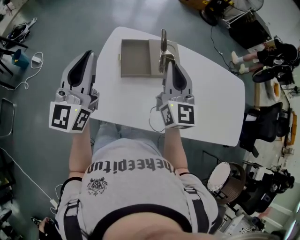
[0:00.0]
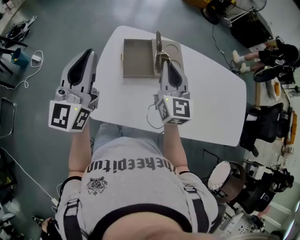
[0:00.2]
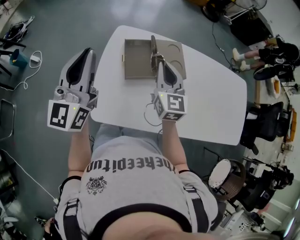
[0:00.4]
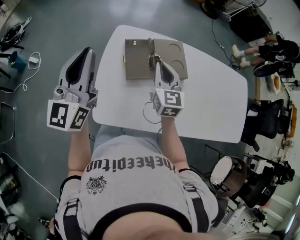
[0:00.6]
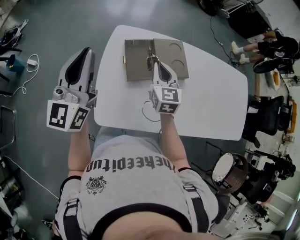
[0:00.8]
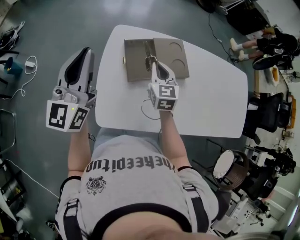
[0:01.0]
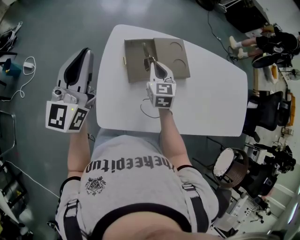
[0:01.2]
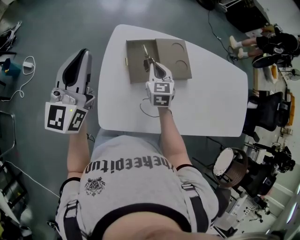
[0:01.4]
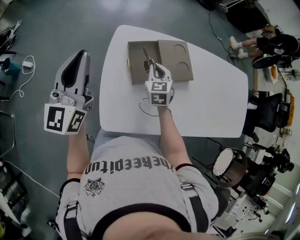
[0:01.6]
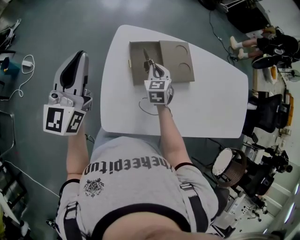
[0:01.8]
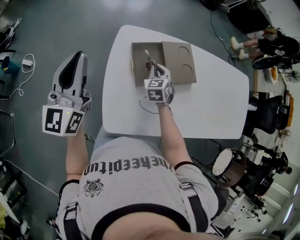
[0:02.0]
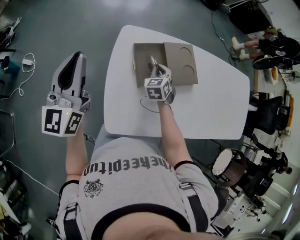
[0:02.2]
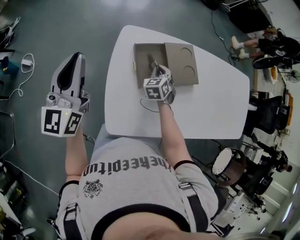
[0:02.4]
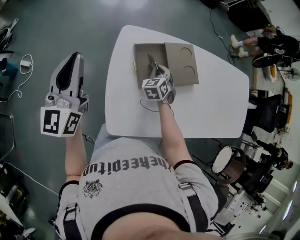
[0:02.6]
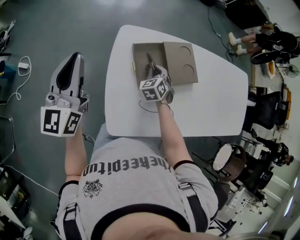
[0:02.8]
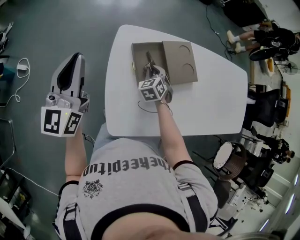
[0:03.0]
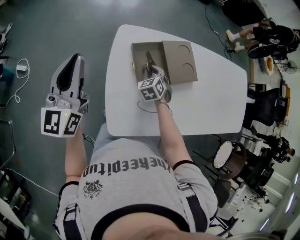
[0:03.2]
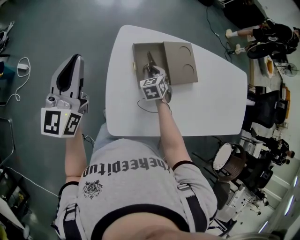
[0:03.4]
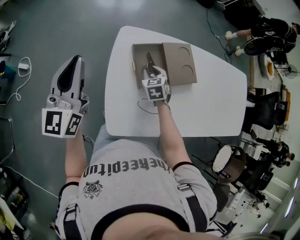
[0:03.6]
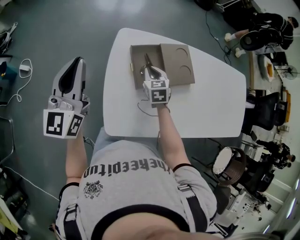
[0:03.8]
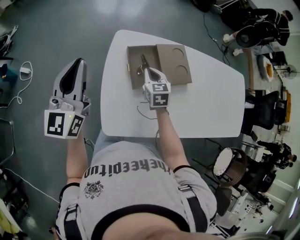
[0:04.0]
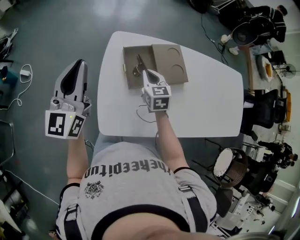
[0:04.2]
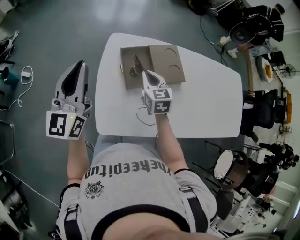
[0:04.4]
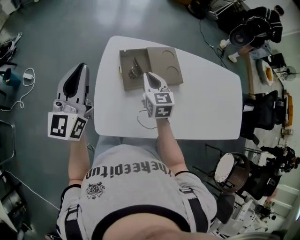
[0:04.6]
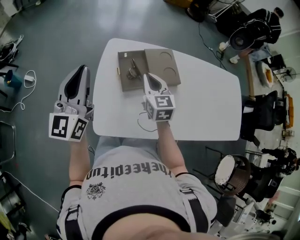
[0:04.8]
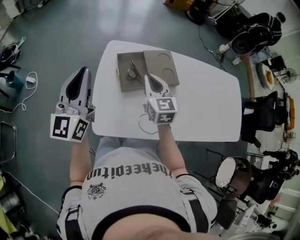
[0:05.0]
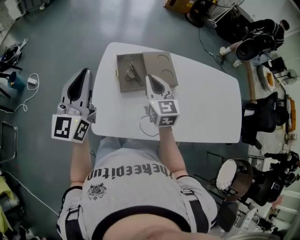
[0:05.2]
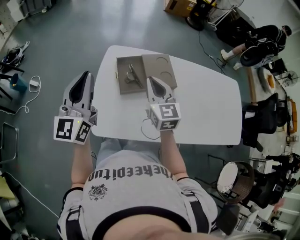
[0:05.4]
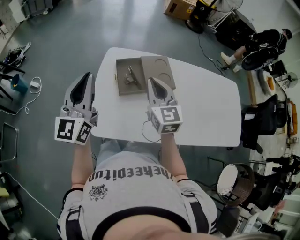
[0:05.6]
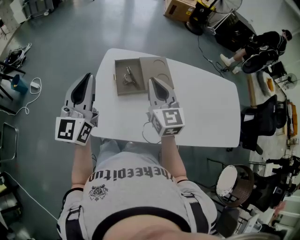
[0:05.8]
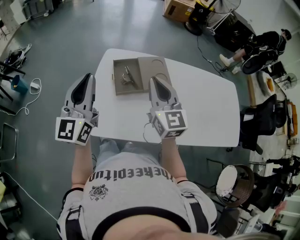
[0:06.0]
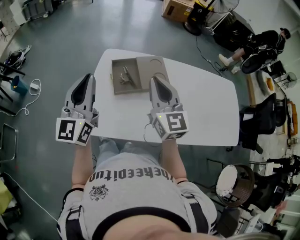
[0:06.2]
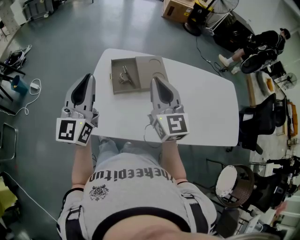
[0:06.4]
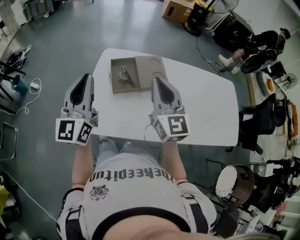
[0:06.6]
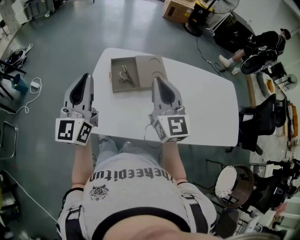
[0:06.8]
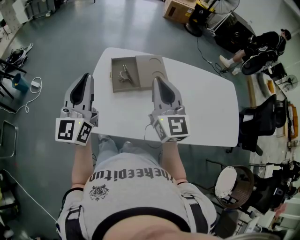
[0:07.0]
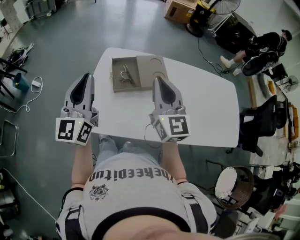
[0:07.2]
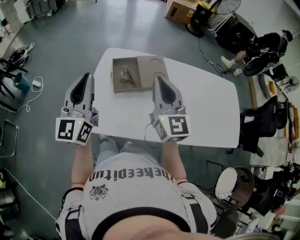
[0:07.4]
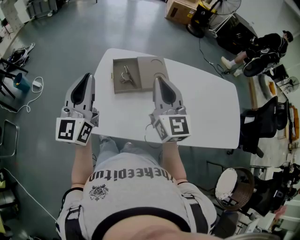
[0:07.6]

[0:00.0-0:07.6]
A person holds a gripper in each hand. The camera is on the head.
0:00.0 to 0:01.6: The right gripper moves downward and forward, about 25 cm, and points its fingers approximately 40 degrees further downward; the left gripper shifts roughly 15 cm forward and to the left.
0:01.6 to 0:03.0: The right gripper shifts roughly 10 cm downward, and swivels about 30 degrees; the left gripper heads to the left, covering about 5 cm.
0:03.0 to 0:04.6: The right gripper is displaced upward and backward by roughly 20 cm, and changes its angle by approximately 40 degrees; the left gripper heads to the right and backward, covering about 15 cm.
0:04.6 to 0:06.0: The right gripper moves upward, backward and to the right, some 20 cm, and swivels approximately 20 degrees, while the left gripper is displaced backward and to the right by some 10 cm.
0:06.0 to 0:07.6: The right gripper changes place by about 5 cm.

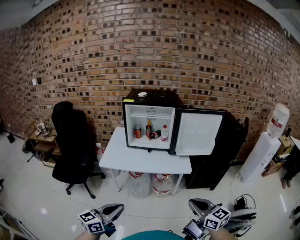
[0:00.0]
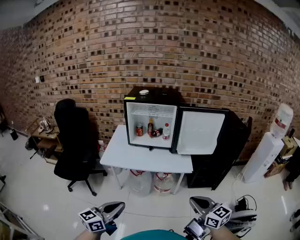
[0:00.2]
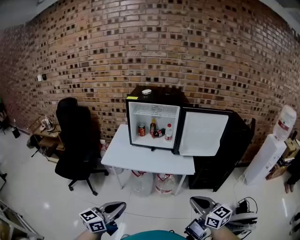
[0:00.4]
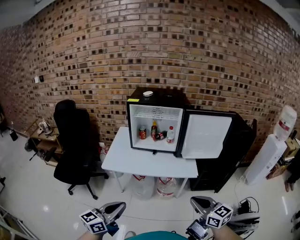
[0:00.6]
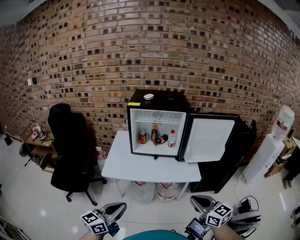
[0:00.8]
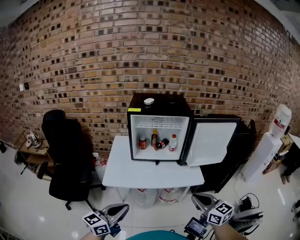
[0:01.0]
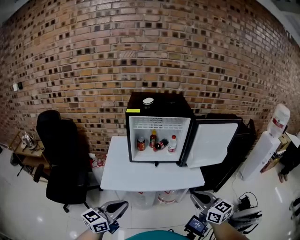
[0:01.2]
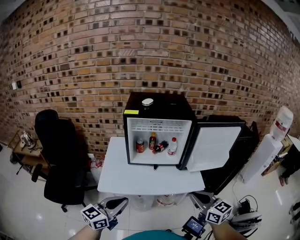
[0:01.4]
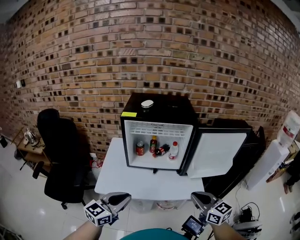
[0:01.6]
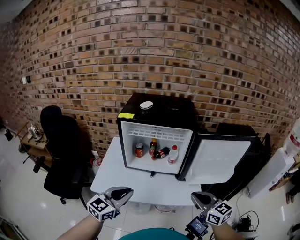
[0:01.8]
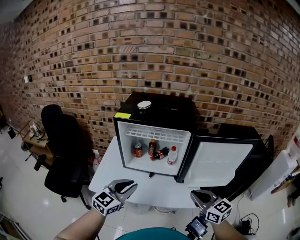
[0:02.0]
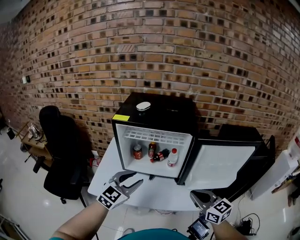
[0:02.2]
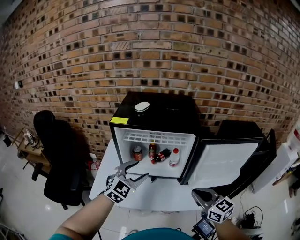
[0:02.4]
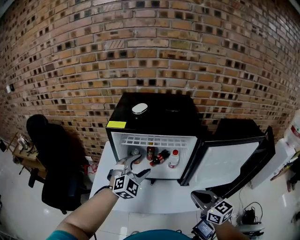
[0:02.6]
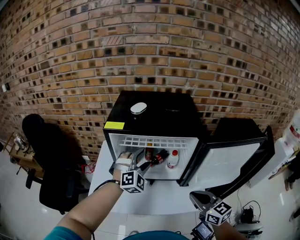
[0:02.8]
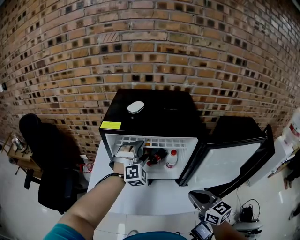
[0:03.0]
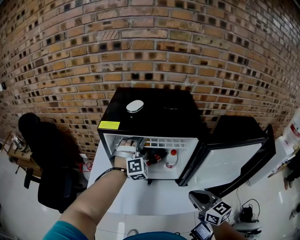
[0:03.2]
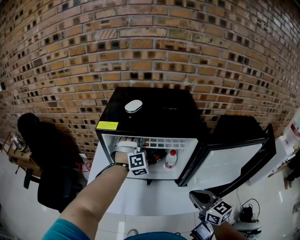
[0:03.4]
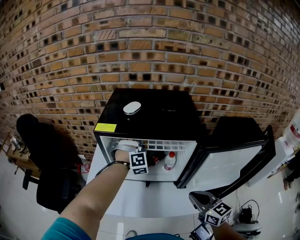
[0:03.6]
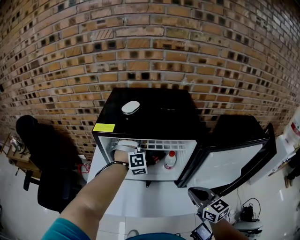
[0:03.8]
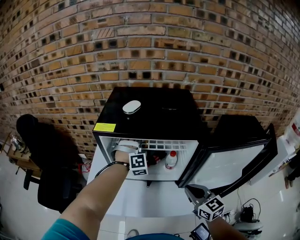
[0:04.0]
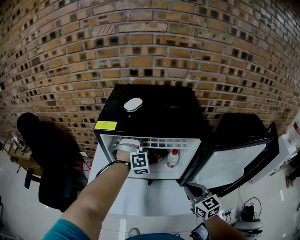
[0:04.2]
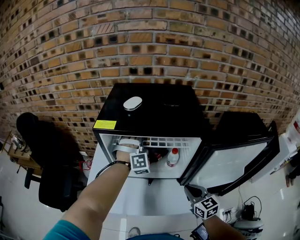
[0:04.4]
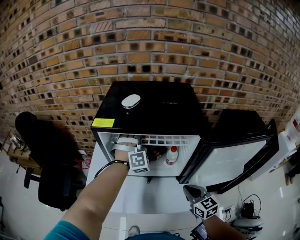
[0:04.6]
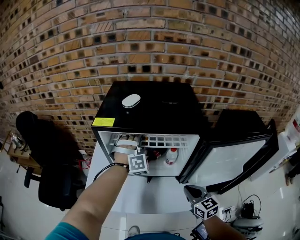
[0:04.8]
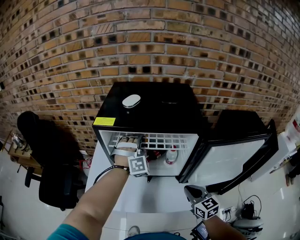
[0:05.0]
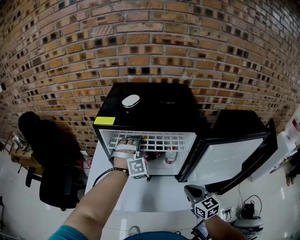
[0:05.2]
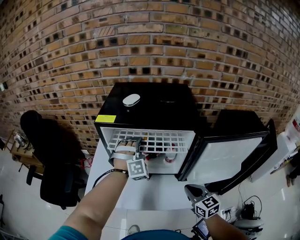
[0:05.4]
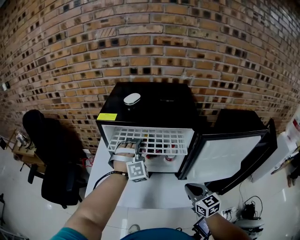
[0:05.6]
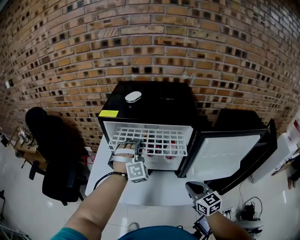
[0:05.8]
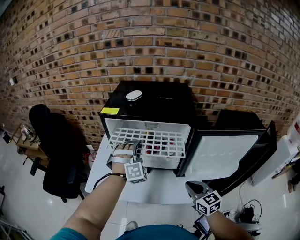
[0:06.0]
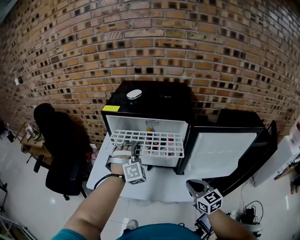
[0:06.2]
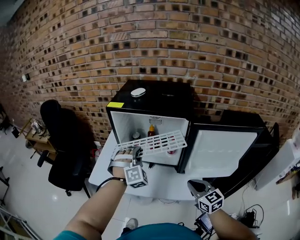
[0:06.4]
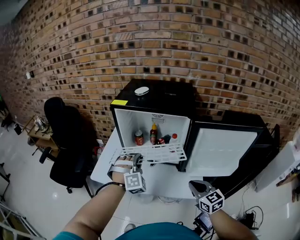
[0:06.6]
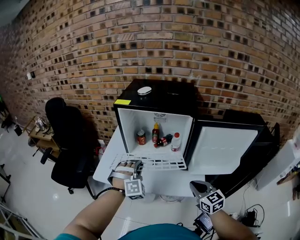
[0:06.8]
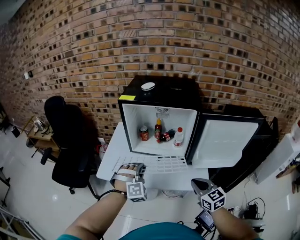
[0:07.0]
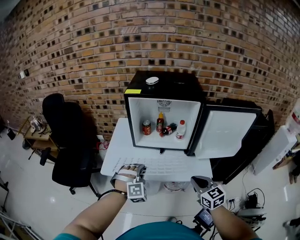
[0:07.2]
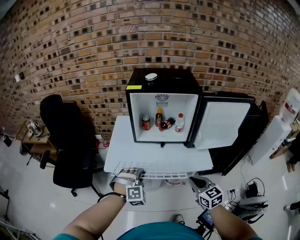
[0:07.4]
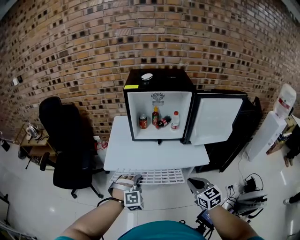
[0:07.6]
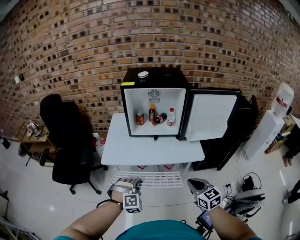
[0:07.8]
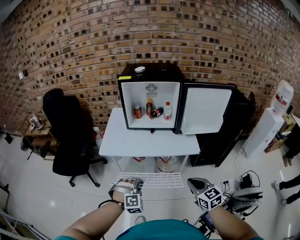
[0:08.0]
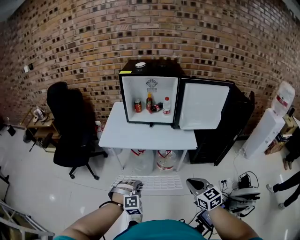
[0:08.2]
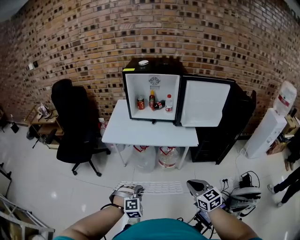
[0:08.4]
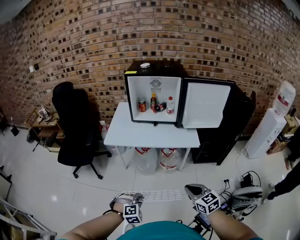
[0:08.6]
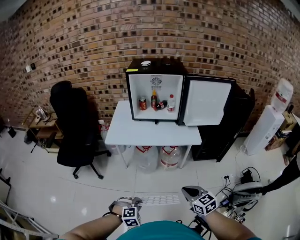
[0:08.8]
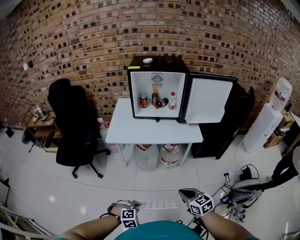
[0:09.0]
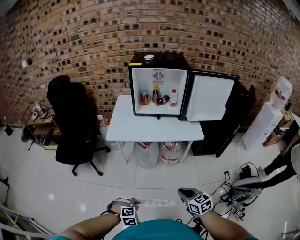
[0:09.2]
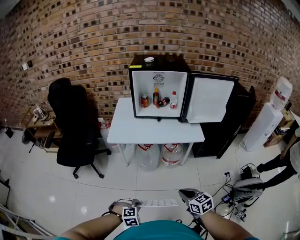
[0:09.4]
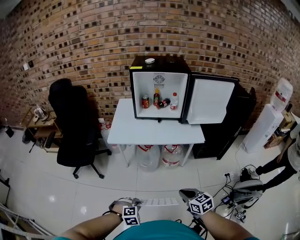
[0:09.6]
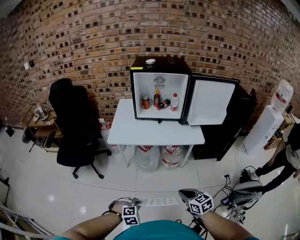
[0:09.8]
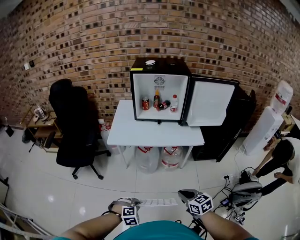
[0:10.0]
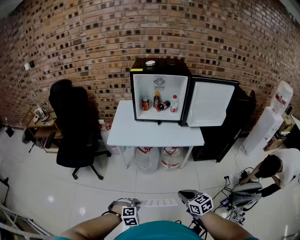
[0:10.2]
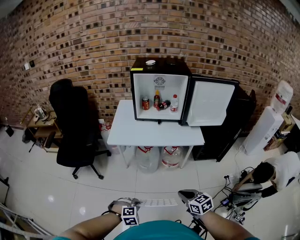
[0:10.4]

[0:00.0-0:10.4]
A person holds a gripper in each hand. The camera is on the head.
0:00.0 to 0:01.4: The right gripper goes roughly 25 cm forward and to the left; the left gripper heads forward, covering about 25 cm.
0:01.4 to 0:03.0: The left gripper heads forward and to the right, covering roughly 40 cm, rotates around the line of its fingers by some 80 degrees, clockwise from behind, and opens. The right gripper is displaced forward by about 20 cm.
0:03.0 to 0:04.4: The right gripper moves downward and forward, approximately 10 cm; the left gripper is displaced forward by approximately 10 cm, and closes up.
0:04.4 to 0:06.0: The right gripper moves backward, approximately 5 cm. The left gripper moves backward, about 10 cm.
0:06.0 to 0:07.4: The right gripper shifts some 20 cm backward and to the left; the left gripper goes approximately 30 cm backward, to the left and downward, and changes its angle by some 20 degrees.
0:07.4 to 0:09.0: The right gripper goes some 25 cm backward; the left gripper goes some 40 cm backward and downward, and tilts its fingers approximately 30 degrees downward.
0:09.0 to 0:10.4: The grippers stay close to where they were, moving slightly.

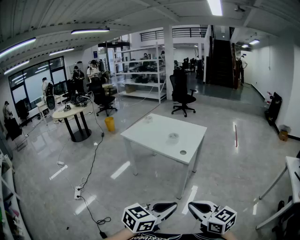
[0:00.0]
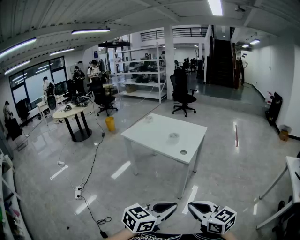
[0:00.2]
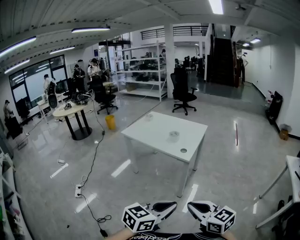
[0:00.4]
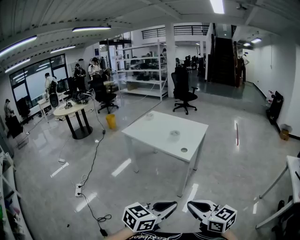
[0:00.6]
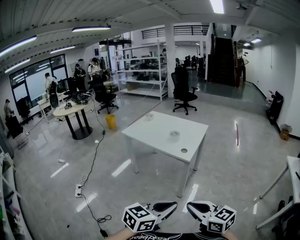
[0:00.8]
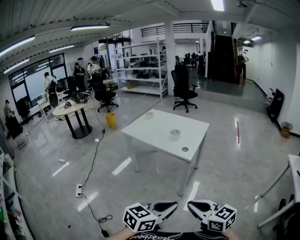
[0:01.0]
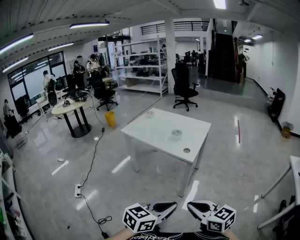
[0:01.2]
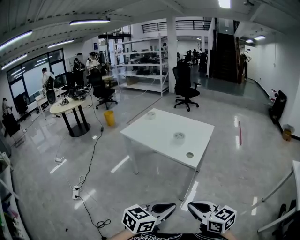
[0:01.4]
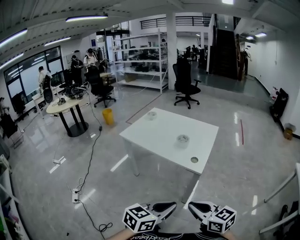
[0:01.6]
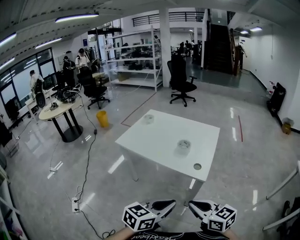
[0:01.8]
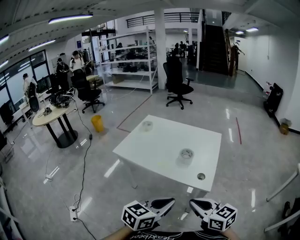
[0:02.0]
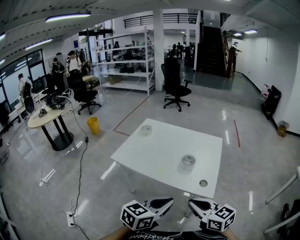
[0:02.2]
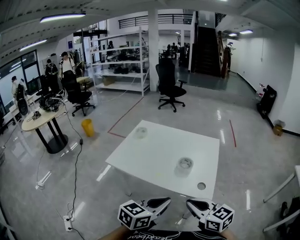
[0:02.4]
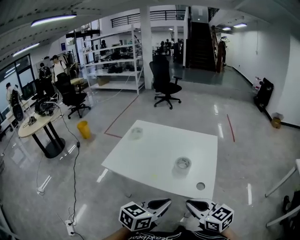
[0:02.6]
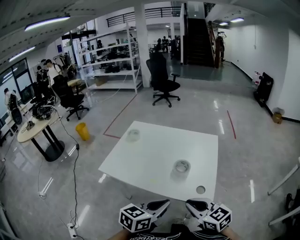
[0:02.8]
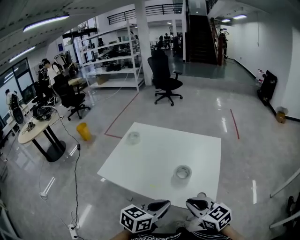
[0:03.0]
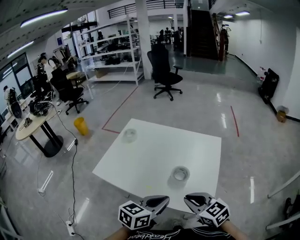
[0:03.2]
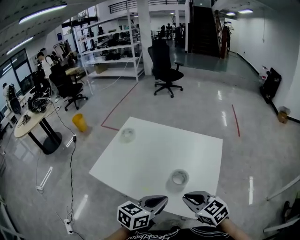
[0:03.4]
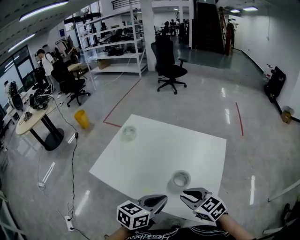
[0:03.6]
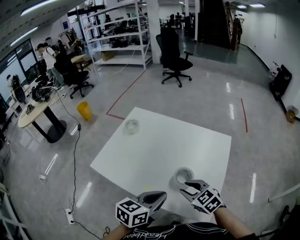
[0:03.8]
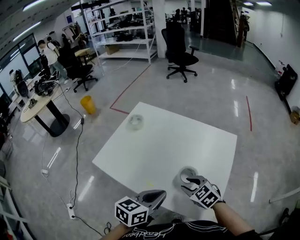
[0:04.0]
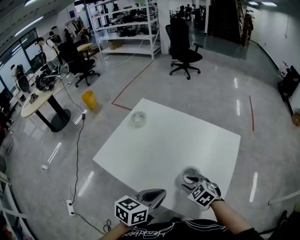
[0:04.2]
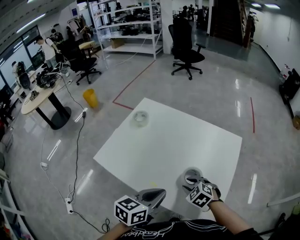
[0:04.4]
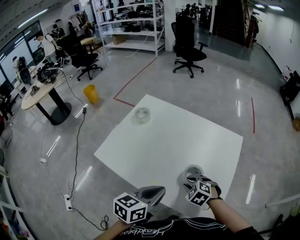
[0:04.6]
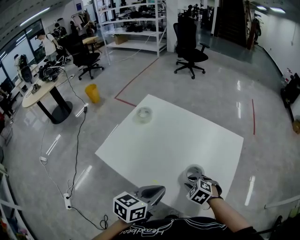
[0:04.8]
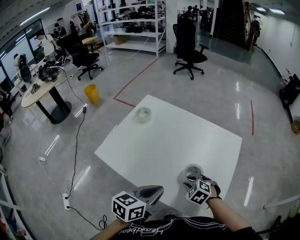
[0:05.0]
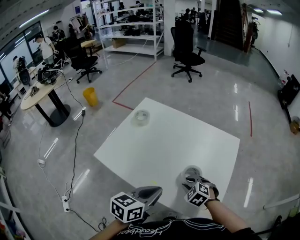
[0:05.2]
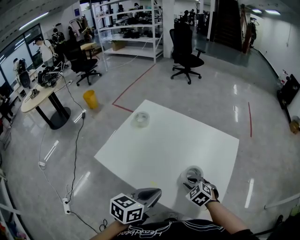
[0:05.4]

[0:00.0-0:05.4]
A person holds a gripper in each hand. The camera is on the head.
0:00.0 to 0:01.4: Both grippers travel together forward, about 10 cm.
0:01.4 to 0:02.8: Both grippers move forward and to the left, about 35 cm.
0:02.8 to 0:04.0: The right gripper goes roughly 25 cm forward and downward, rotates some 30 degrees, and opens its fingers. Meanwhile the left gripper goes some 15 cm forward.
